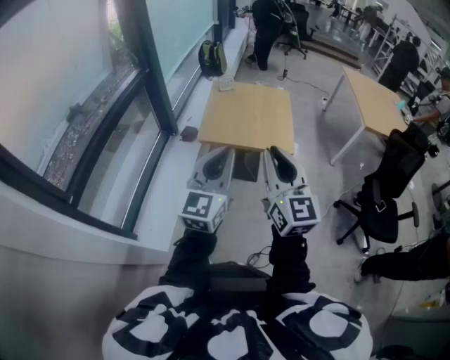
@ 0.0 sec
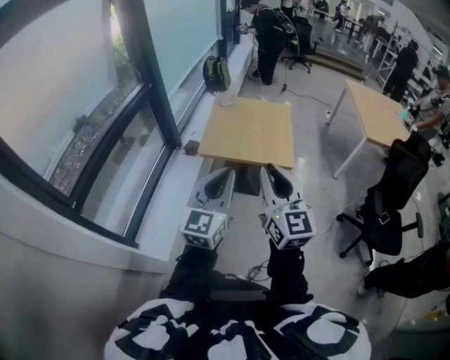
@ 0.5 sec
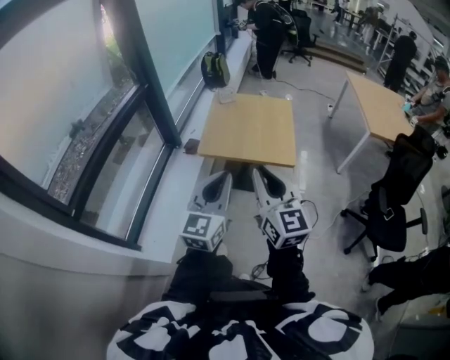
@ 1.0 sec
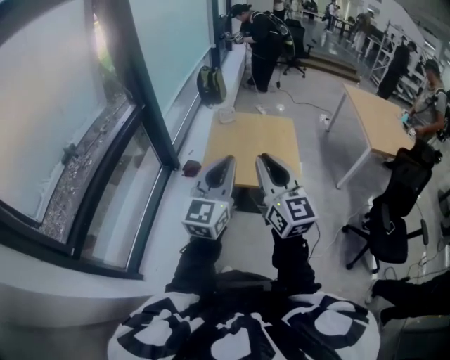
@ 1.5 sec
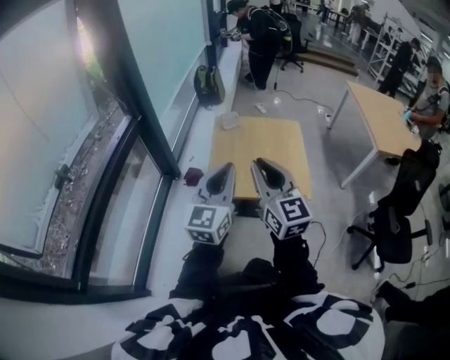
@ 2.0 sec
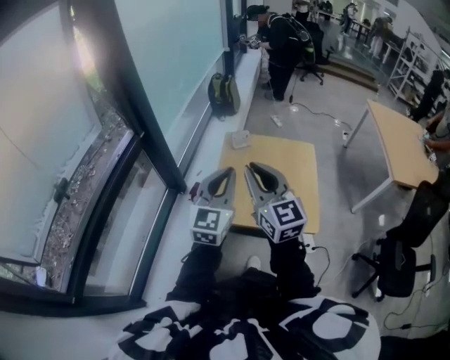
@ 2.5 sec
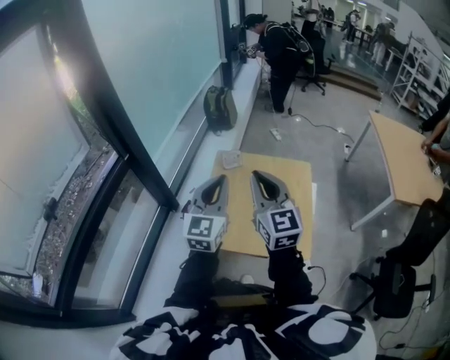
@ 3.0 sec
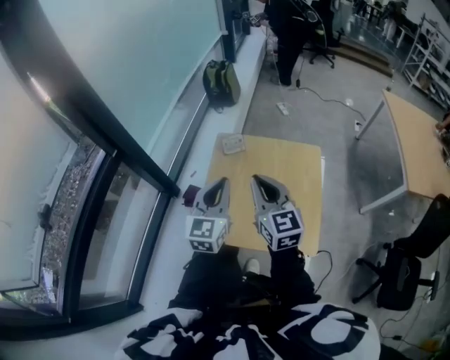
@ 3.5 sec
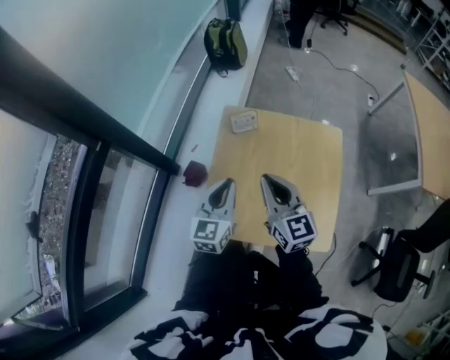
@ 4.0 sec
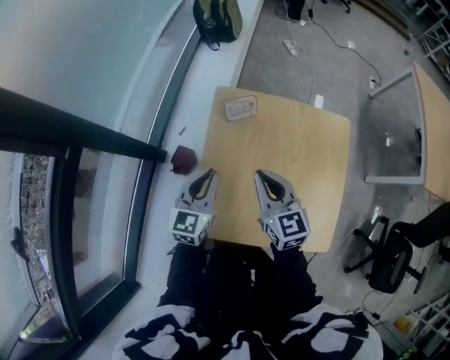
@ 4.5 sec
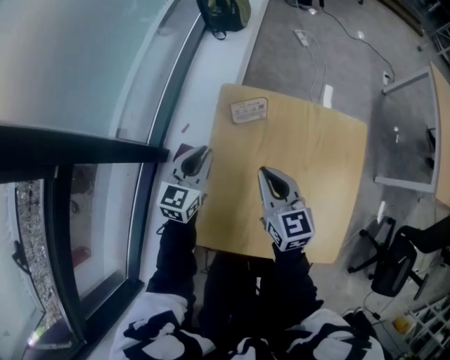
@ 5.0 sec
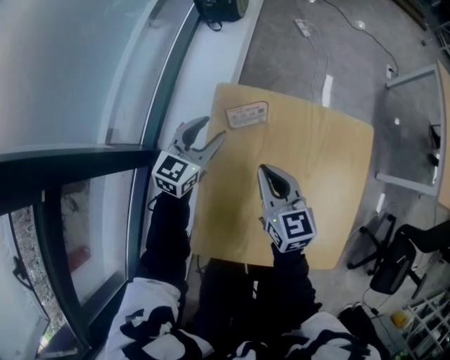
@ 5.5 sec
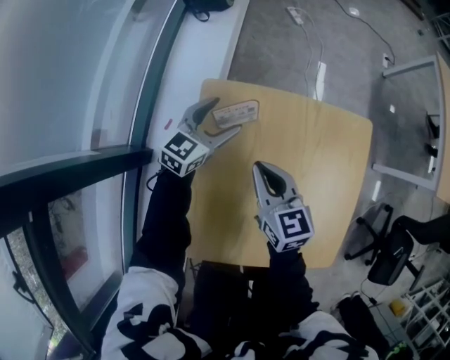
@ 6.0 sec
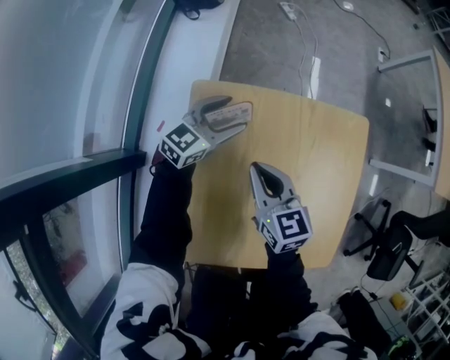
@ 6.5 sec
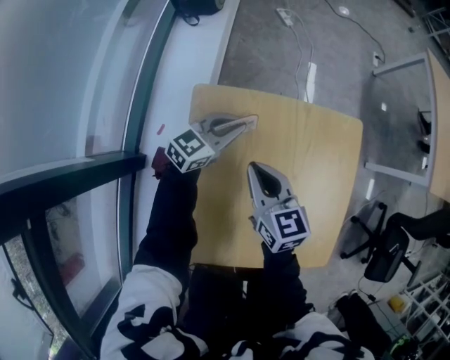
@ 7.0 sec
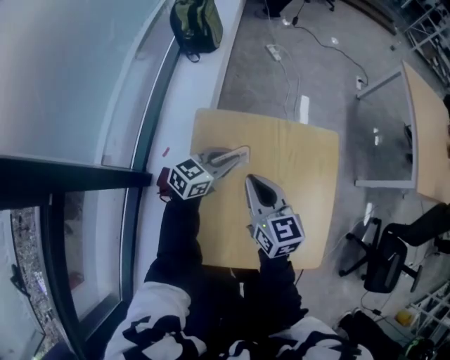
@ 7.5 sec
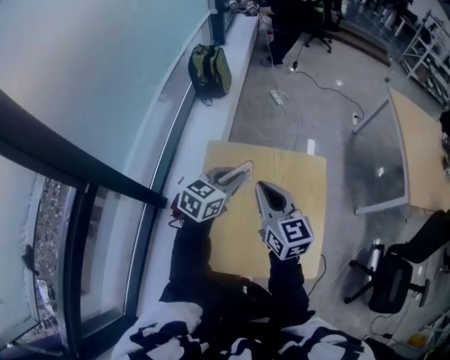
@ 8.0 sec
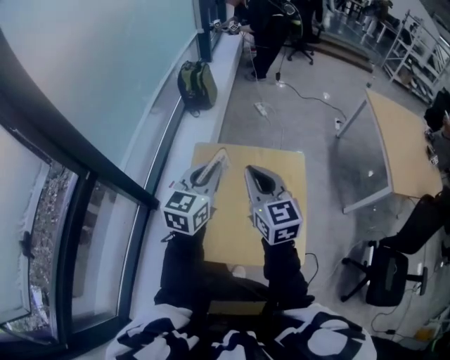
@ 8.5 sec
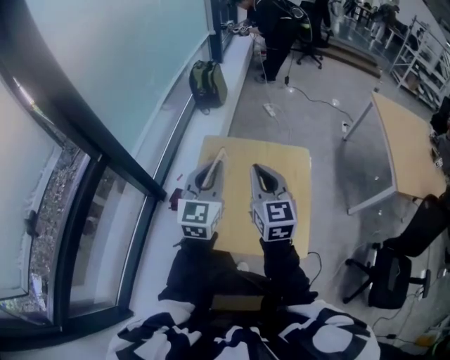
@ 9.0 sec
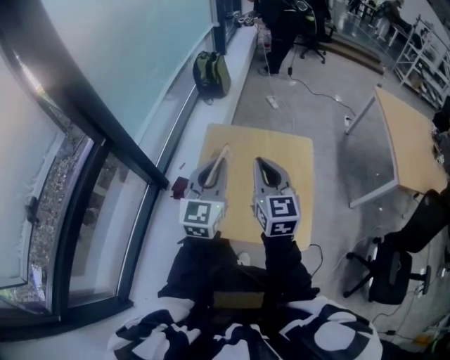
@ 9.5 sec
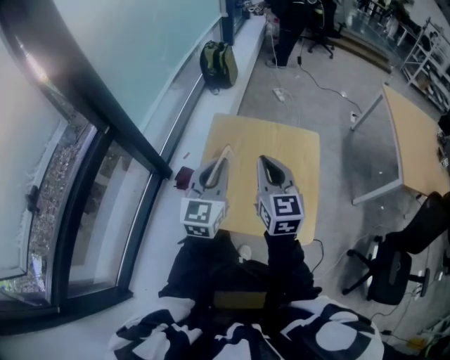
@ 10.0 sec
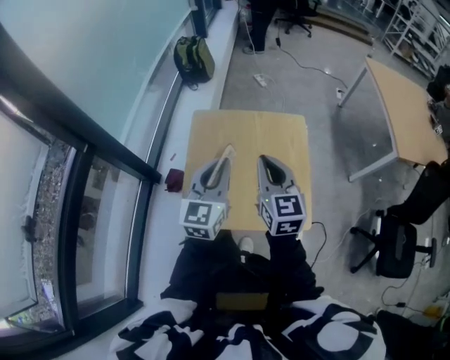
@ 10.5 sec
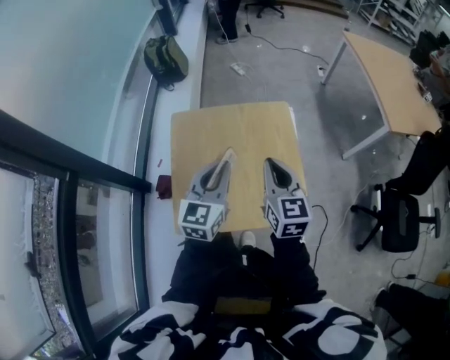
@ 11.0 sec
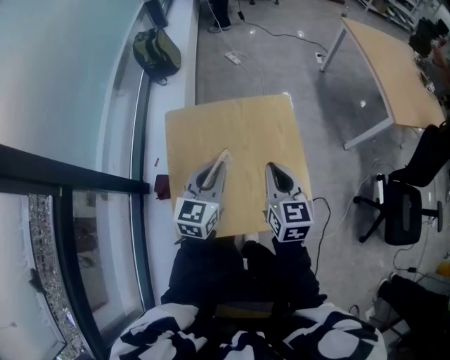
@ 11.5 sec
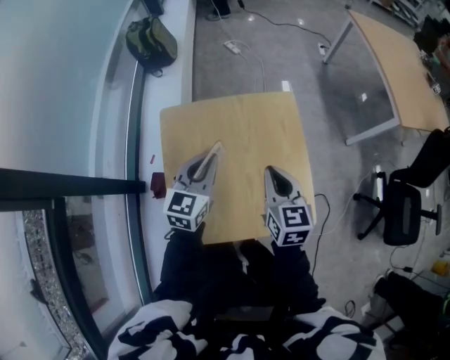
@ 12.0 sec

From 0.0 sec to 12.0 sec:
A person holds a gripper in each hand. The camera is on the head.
From 0.0 sec to 2.0 sec: The grippers both shift forward by approximately 25 cm.
From 2.0 sec to 4.0 sec: Both grippers travel together forward and downward, approximately 35 cm. The left gripper changes its angle by roughly 20 degrees.
From 4.0 sec to 6.0 sec: The left gripper is displaced forward and downward by approximately 35 cm, changes its angle by approximately 30 degrees, and opens its fingers. Meanwhile the right gripper shifts roughly 25 cm downward and forward.
From 6.0 sec to 8.0 sec: The left gripper heads upward, backward and to the right, covering some 25 cm, and closes up. The right gripper shifts some 20 cm upward.
From 8.0 sec to 10.0 sec: The right gripper goes some 15 cm backward. Meanwhile the left gripper heads backward and upward, covering approximately 20 cm, and swivels approximately 40 degrees.
From 10.0 sec to 12.0 sec: The left gripper shifts roughly 20 cm forward, downward and to the right, and turns by about 30 degrees. The right gripper is displaced downward, to the right and forward by about 20 cm, and rotates about 30 degrees.

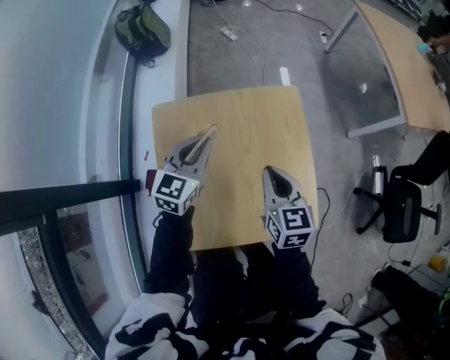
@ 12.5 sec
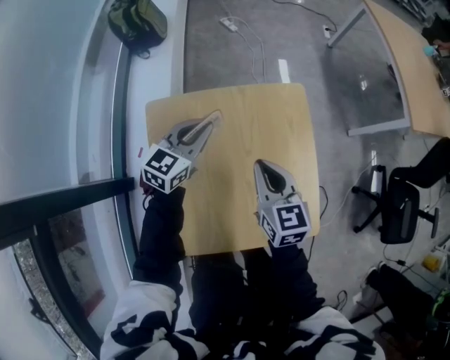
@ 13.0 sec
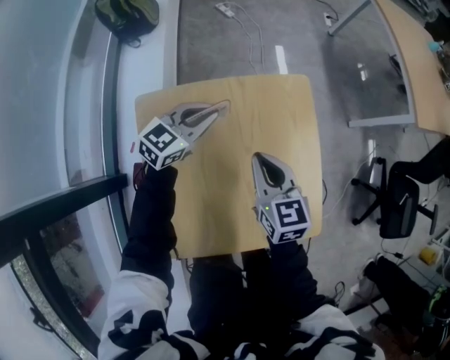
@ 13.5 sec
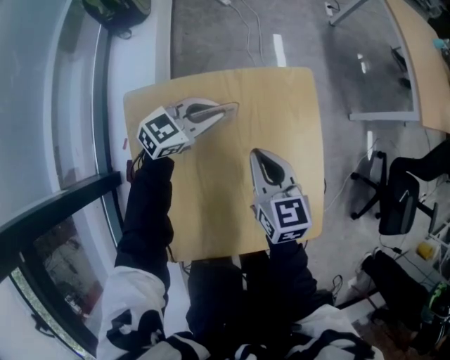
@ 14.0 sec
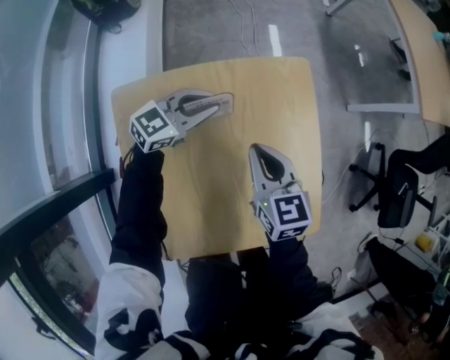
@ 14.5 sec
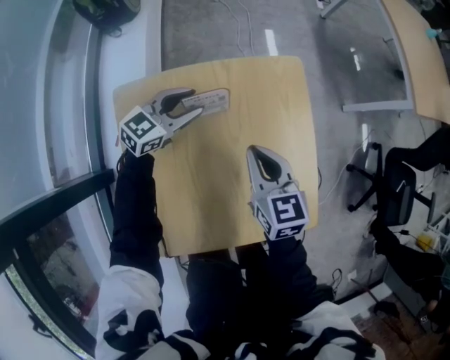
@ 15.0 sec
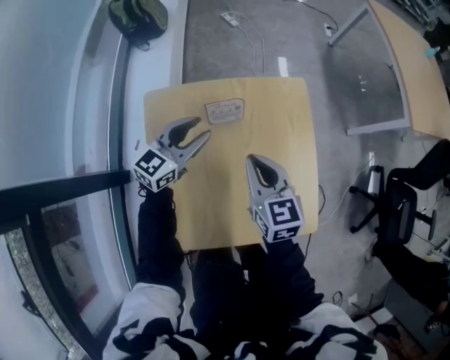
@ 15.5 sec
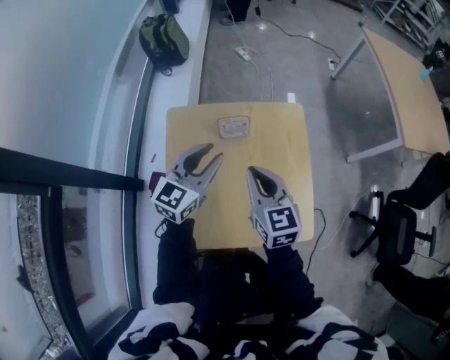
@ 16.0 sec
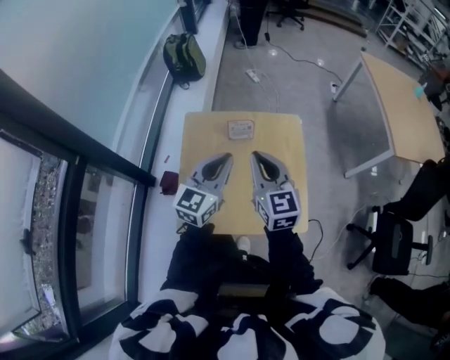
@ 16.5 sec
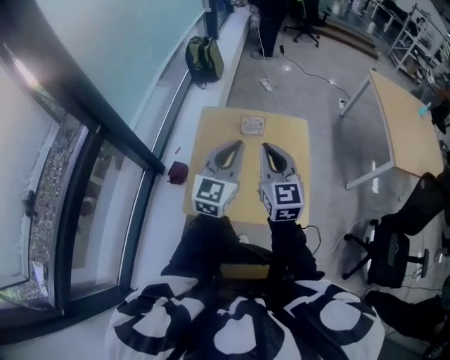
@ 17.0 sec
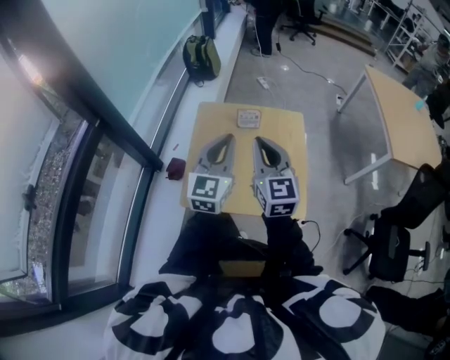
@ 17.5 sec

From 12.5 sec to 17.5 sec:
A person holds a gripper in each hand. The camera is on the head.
From 12.5 sec to 15.0 sec: The left gripper travels downward and forward by roughly 15 cm, swivels roughly 30 degrees, and opens up. Meanwhile the right gripper travels downward by some 10 cm.
From 15.0 sec to 17.5 sec: The grippers both shift upward by some 30 cm. The right gripper swivels about 30 degrees. The left gripper changes its angle by some 60 degrees, and closes its fingers.

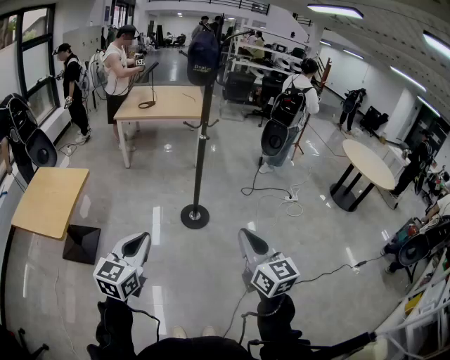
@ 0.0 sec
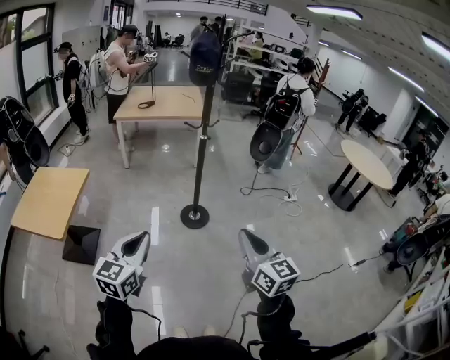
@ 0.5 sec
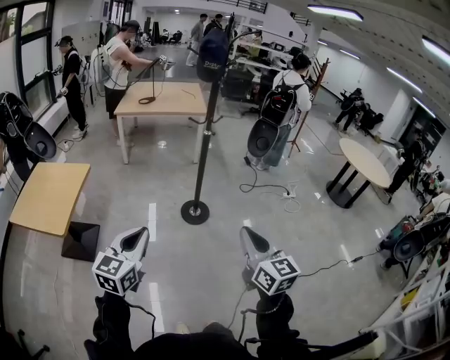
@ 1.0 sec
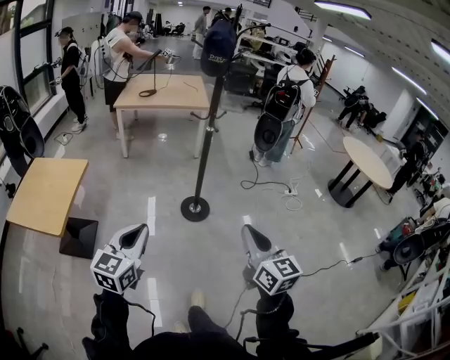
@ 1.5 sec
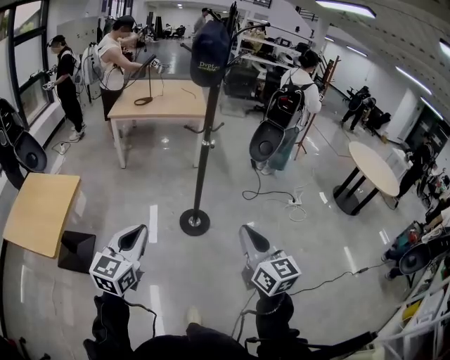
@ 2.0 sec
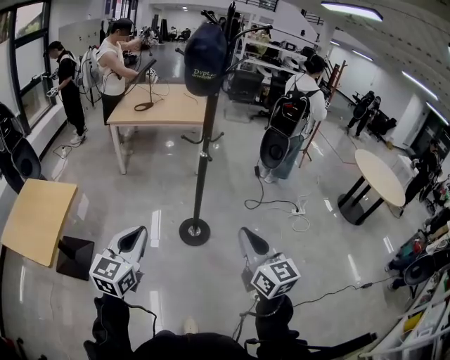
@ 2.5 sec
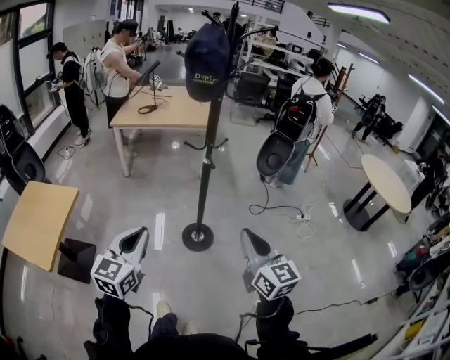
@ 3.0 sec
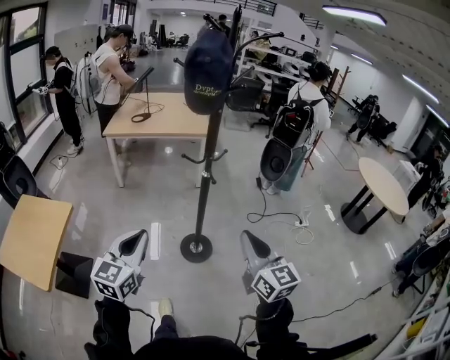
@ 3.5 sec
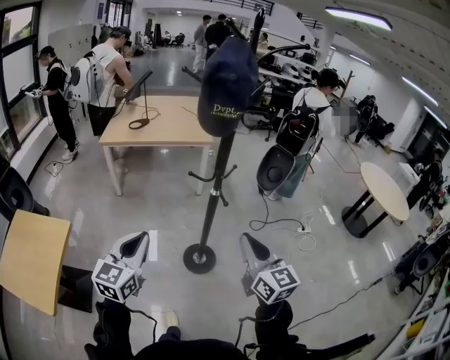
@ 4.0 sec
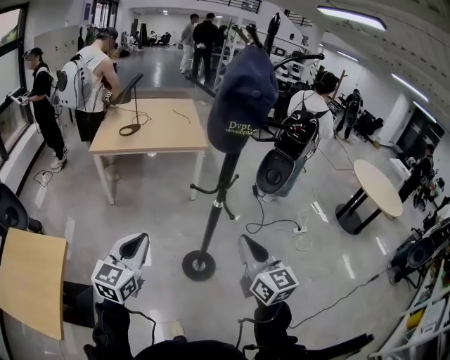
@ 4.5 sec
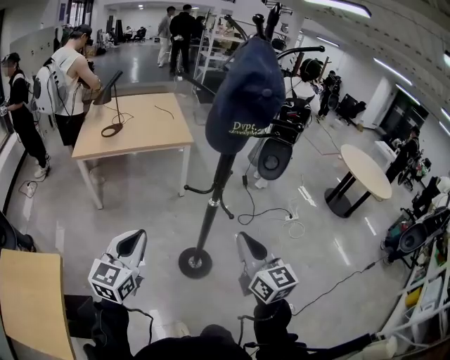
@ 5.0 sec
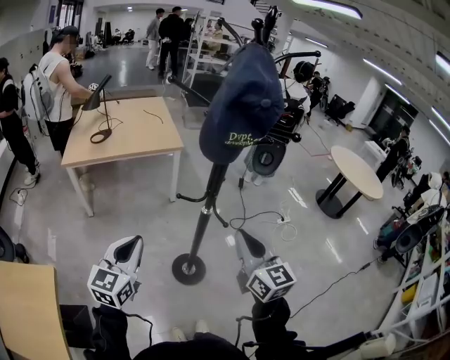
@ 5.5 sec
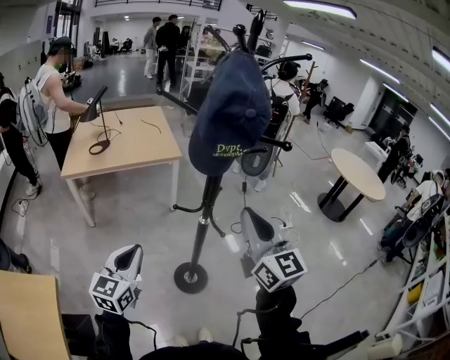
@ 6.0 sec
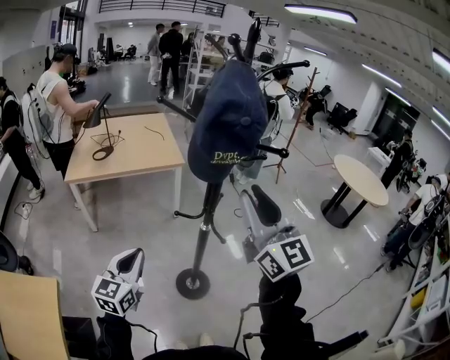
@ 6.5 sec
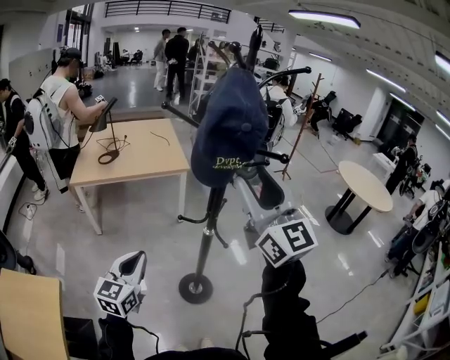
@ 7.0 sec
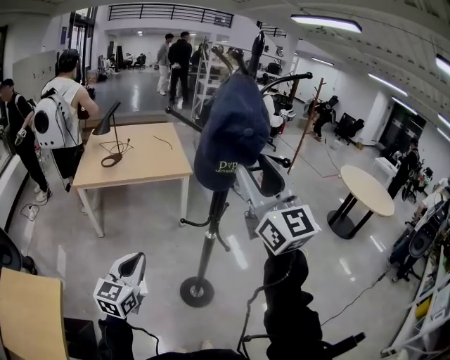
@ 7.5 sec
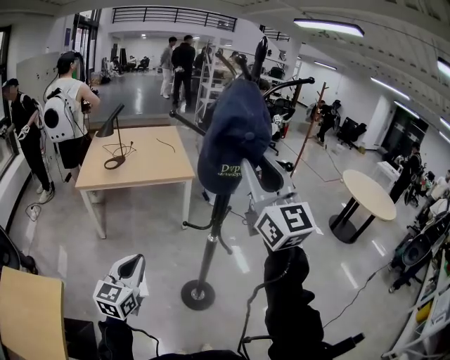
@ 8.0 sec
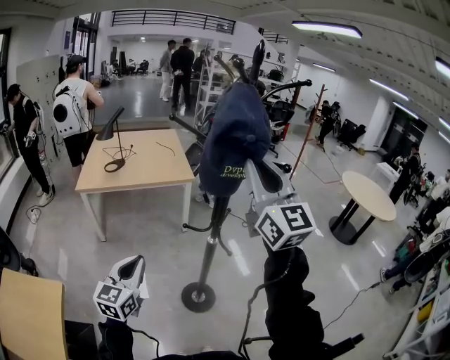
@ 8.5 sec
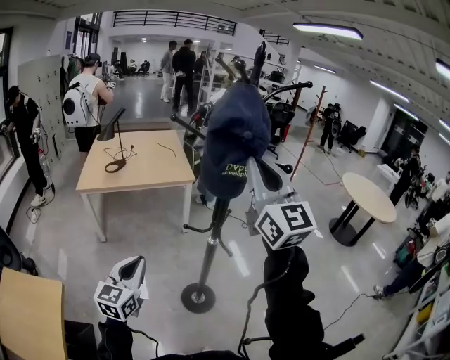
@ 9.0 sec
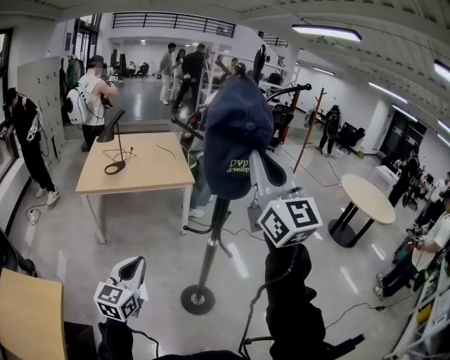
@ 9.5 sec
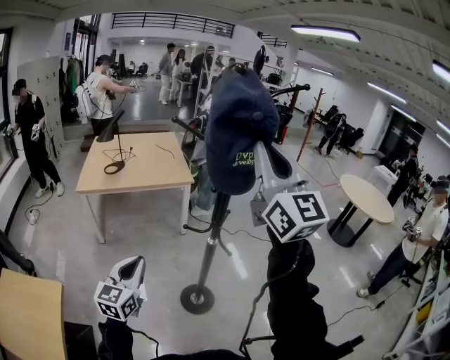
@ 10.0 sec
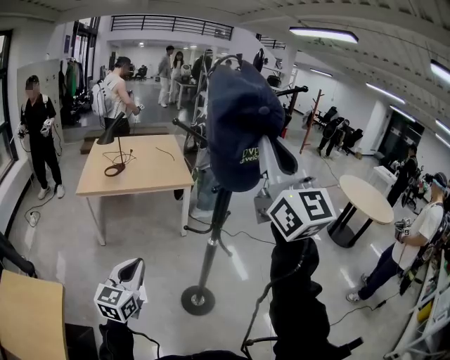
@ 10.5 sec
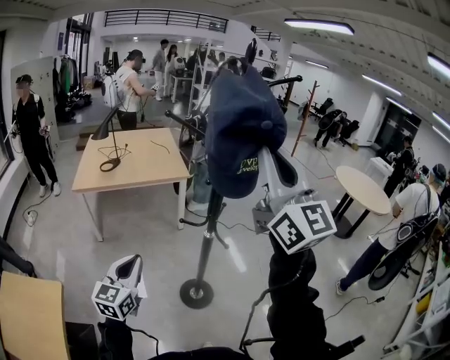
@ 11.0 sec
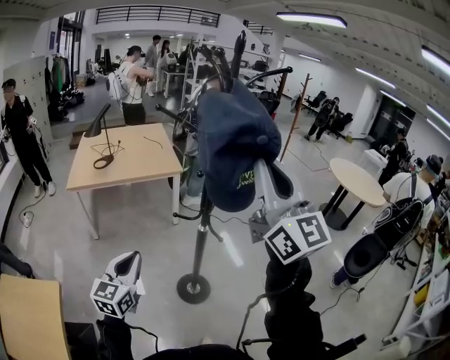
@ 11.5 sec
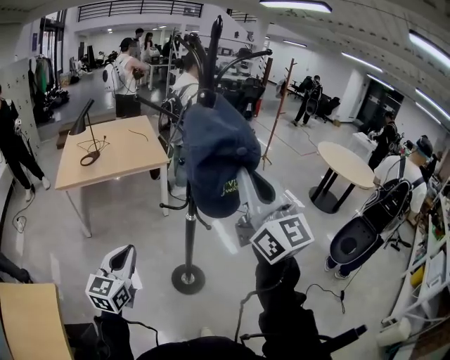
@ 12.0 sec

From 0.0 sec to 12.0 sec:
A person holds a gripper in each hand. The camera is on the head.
From 0.0 sec to 2.0 sec: Both grippers move forward, approximately 15 cm.
From 2.0 sec to 4.0 sec: Both grippers move forward, approximately 25 cm.
From 4.0 sec to 6.0 sec: The left gripper heads forward, covering some 15 cm. The right gripper shifts some 15 cm forward and upward.
From 6.0 sec to 8.0 sec: The right gripper moves upward, some 15 cm, and opens up.
From 8.0 sec to 10.0 sec: The right gripper heads upward, covering approximately 5 cm, and closes.
From 10.0 sec to 12.0 sec: The right gripper travels downward, backward and to the right by some 15 cm.
